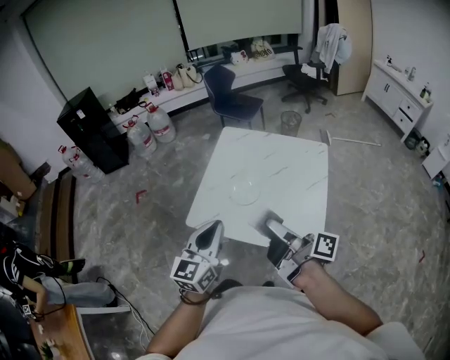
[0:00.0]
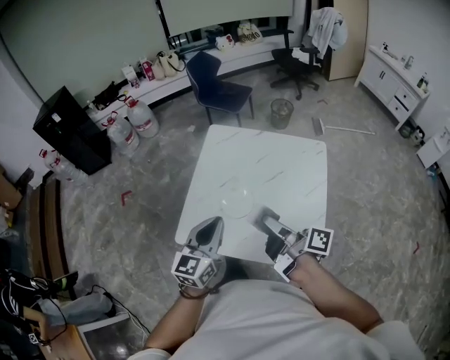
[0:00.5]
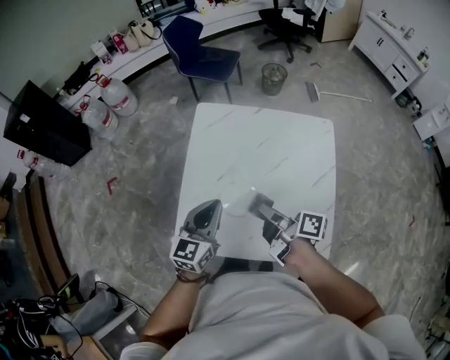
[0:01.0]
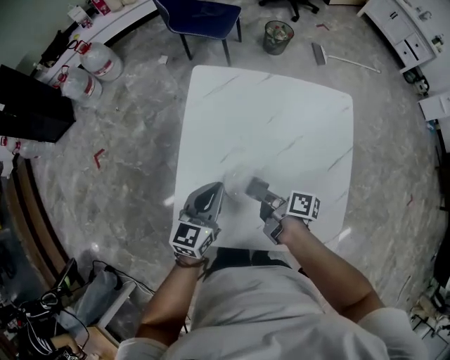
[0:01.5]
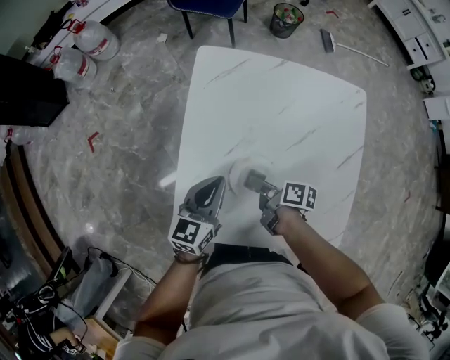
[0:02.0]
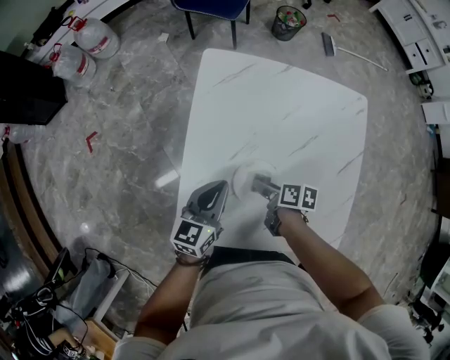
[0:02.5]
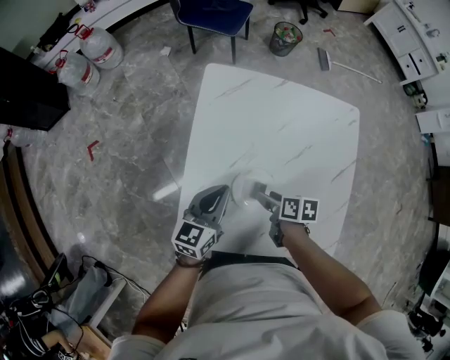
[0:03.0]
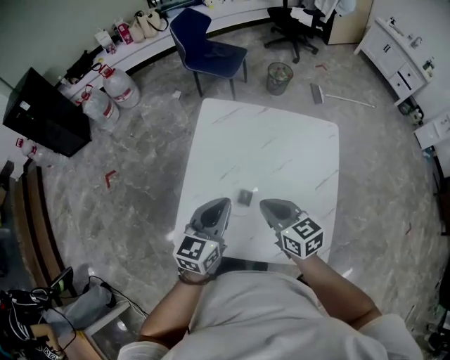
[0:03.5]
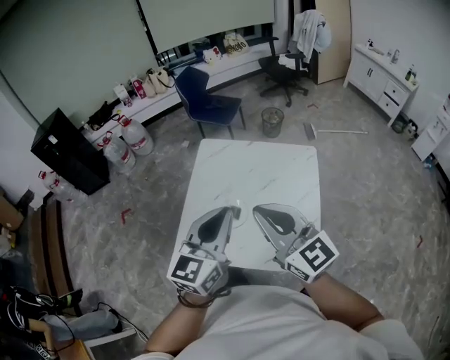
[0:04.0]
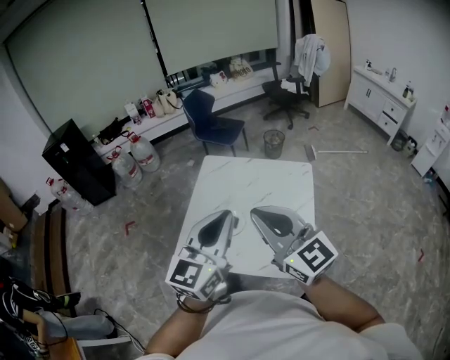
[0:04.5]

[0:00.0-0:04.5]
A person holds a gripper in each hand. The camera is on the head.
0:00.0 to 0:02.0: The left gripper changes place by roughly 50 cm, and rotates roughly 30 degrees.
0:02.0 to 0:04.5: The left gripper moves upward, some 40 cm, and changes its angle by about 30 degrees.

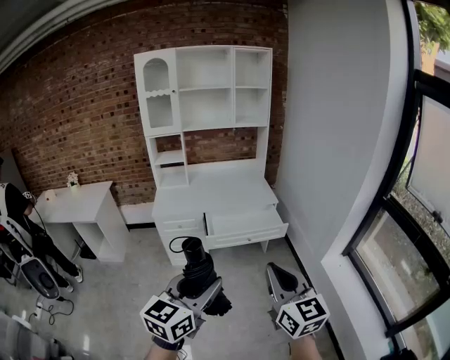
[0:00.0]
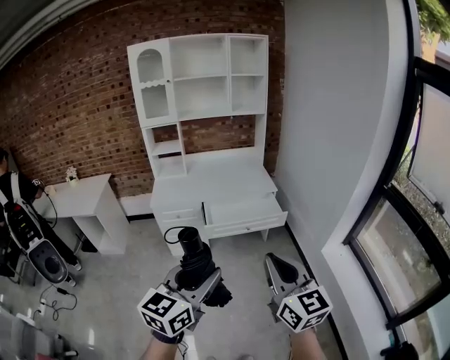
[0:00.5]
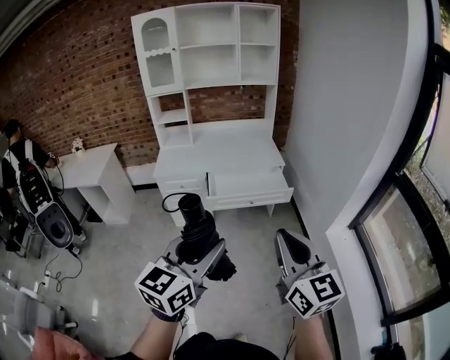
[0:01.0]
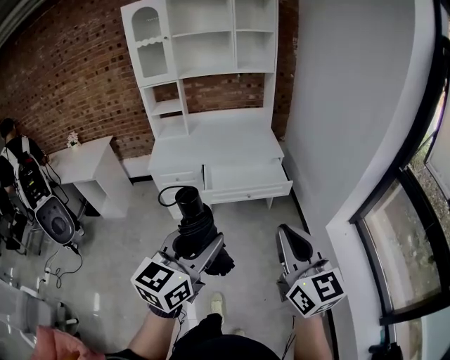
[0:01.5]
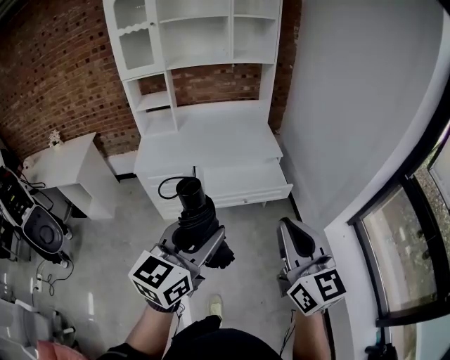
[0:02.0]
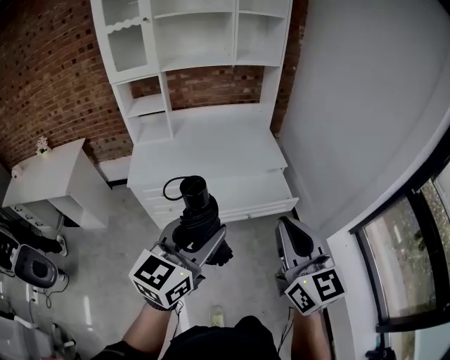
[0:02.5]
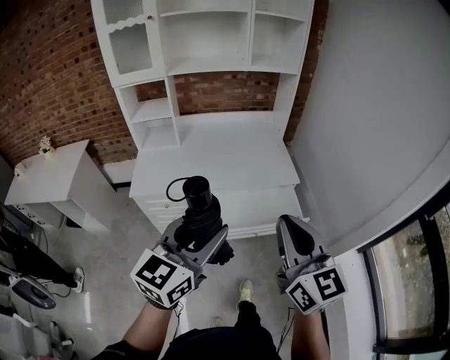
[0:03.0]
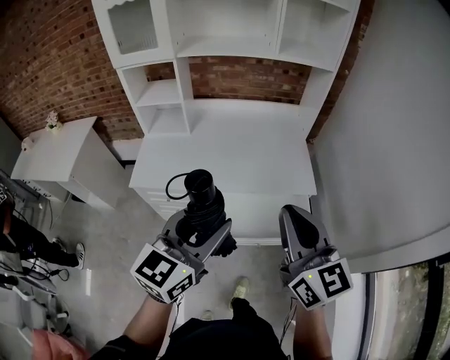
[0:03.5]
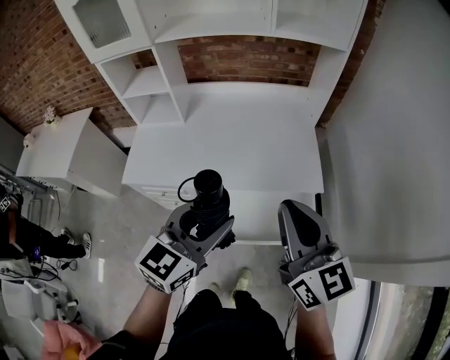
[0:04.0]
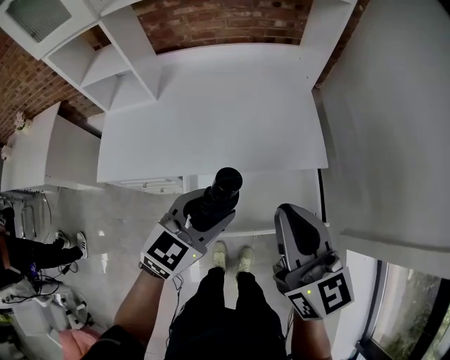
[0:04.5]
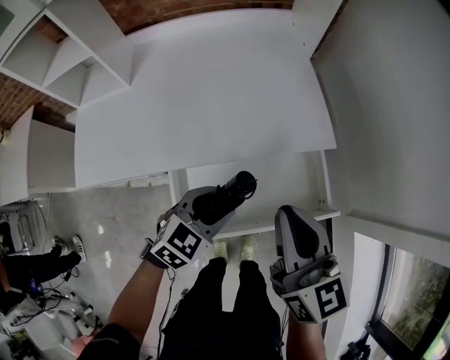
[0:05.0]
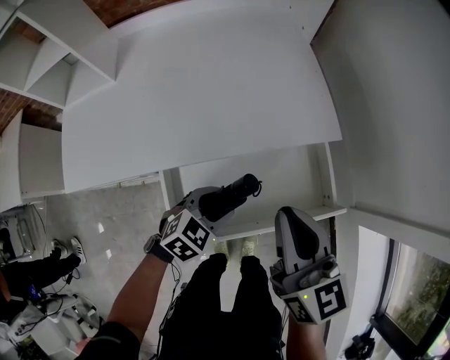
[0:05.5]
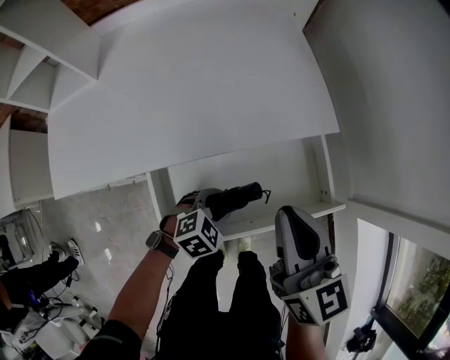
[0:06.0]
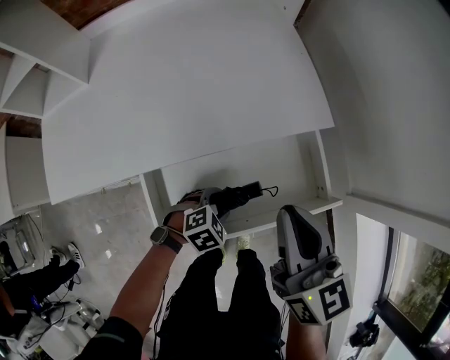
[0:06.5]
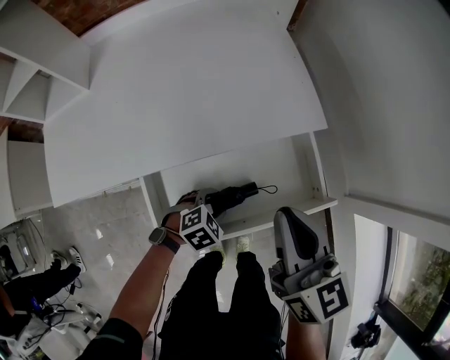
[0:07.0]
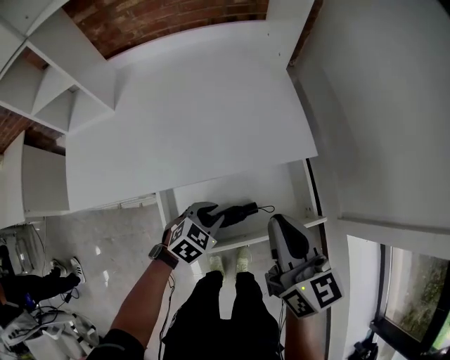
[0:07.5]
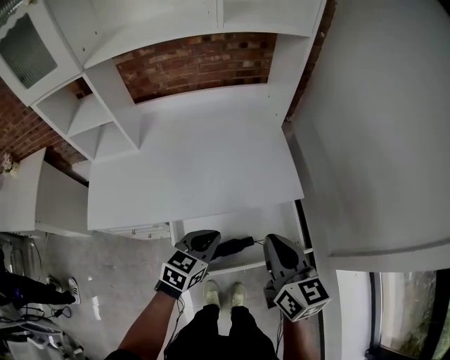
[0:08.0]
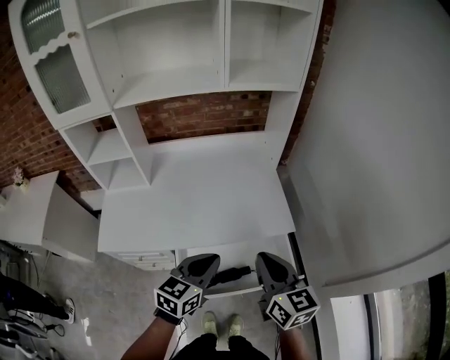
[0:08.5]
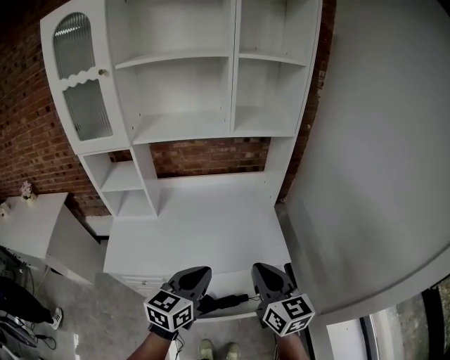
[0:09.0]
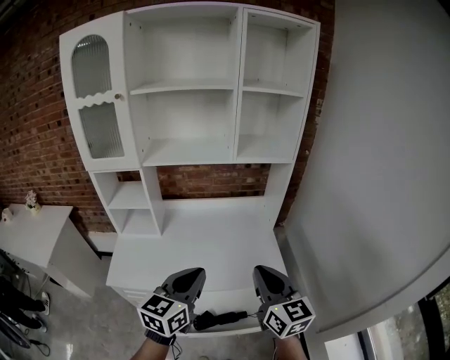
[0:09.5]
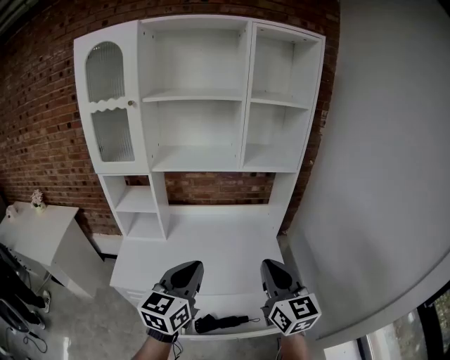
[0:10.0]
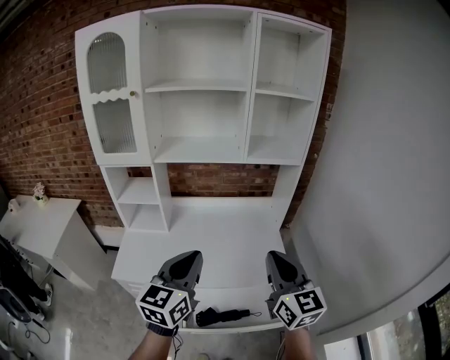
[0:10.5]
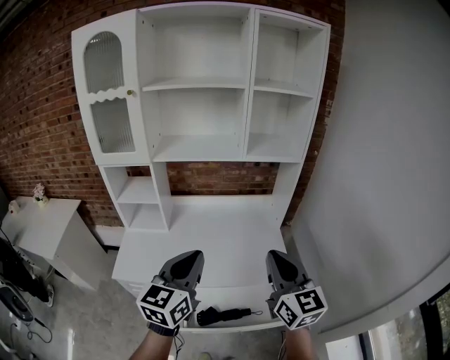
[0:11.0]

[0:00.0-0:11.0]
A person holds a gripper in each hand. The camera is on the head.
0:00.0 to 0:02.0: Both grippers move forward, about 20 cm.
0:02.0 to 0:03.5: Both grippers move forward, some 40 cm.
0:03.5 to 0:05.5: The left gripper heads downward, covering approximately 50 cm, and tips its fingers downward by about 40 degrees. Meanwhile the right gripper heads downward and forward, covering about 35 cm, and changes its angle by roughly 20 degrees.
0:05.5 to 0:07.5: The left gripper moves approximately 10 cm downward and comes back, and closes up.
0:07.5 to 0:09.0: The left gripper goes about 40 cm upward, tilts its fingers roughly 40 degrees upward, and closes its fingers. The right gripper shifts about 20 cm upward.
0:09.0 to 0:11.0: The grippers both shift upward by approximately 10 cm.

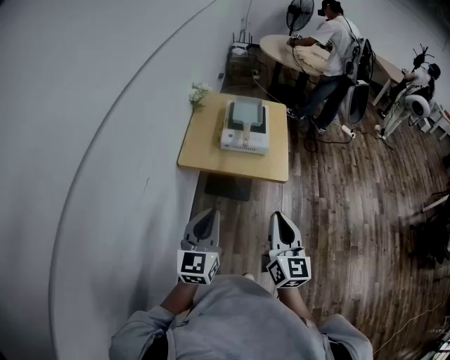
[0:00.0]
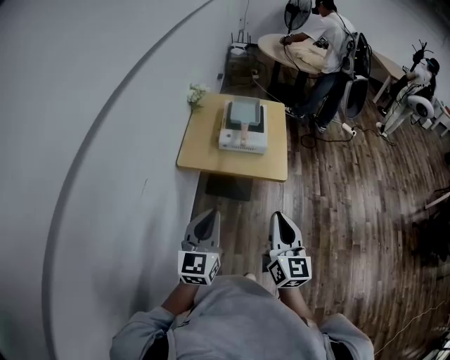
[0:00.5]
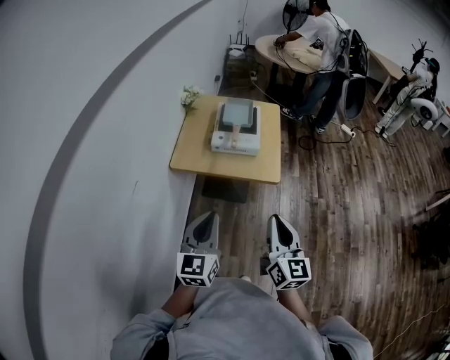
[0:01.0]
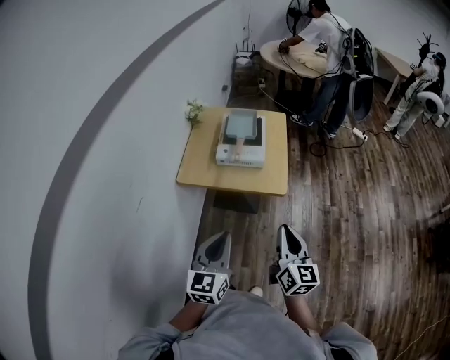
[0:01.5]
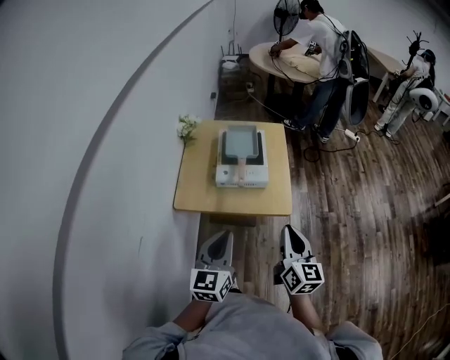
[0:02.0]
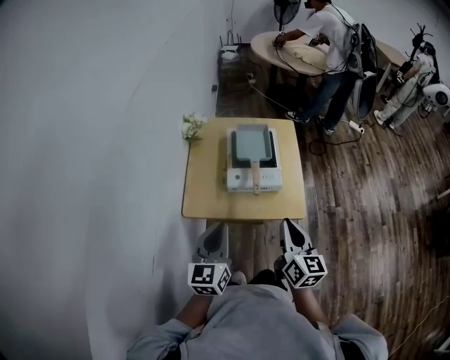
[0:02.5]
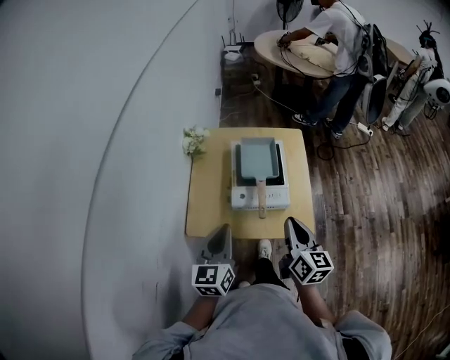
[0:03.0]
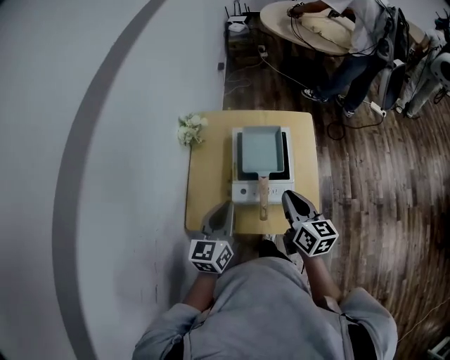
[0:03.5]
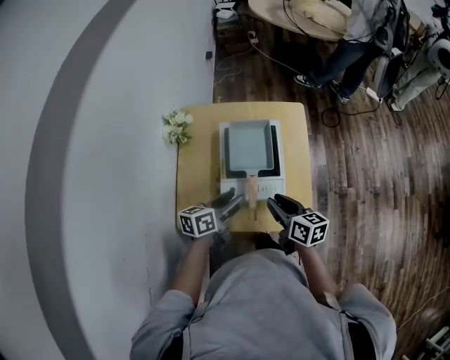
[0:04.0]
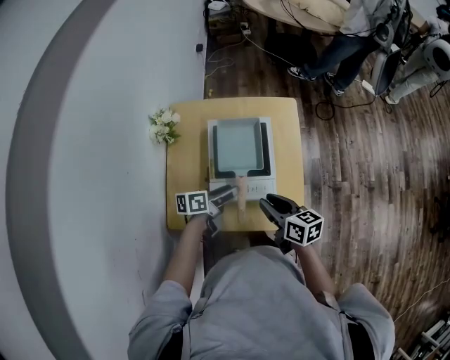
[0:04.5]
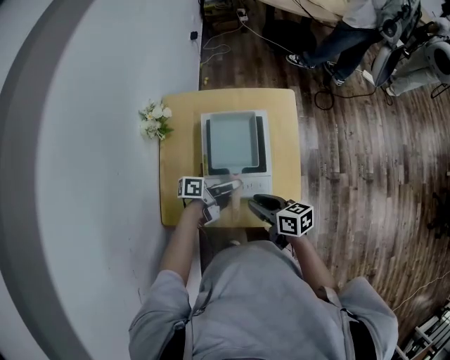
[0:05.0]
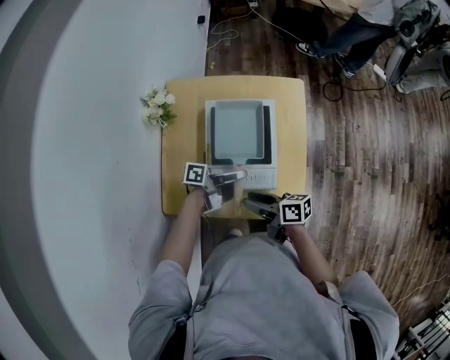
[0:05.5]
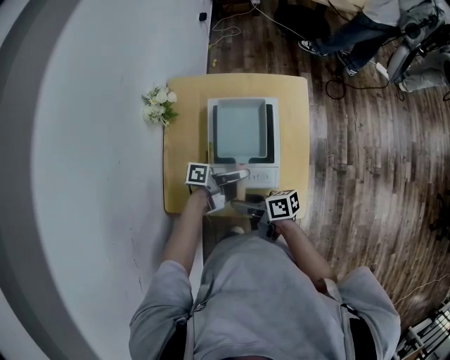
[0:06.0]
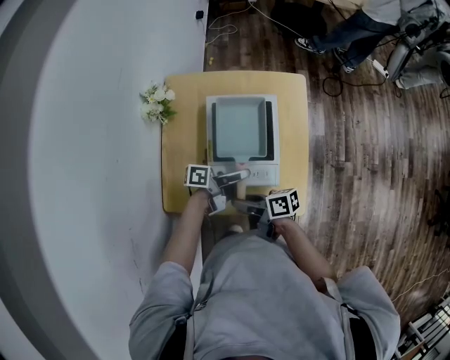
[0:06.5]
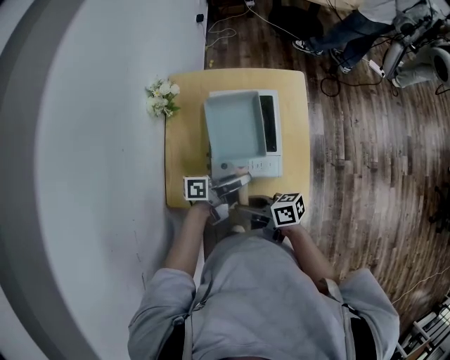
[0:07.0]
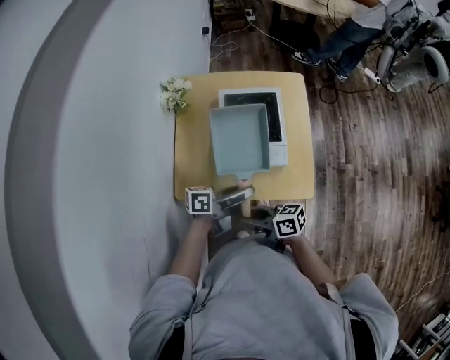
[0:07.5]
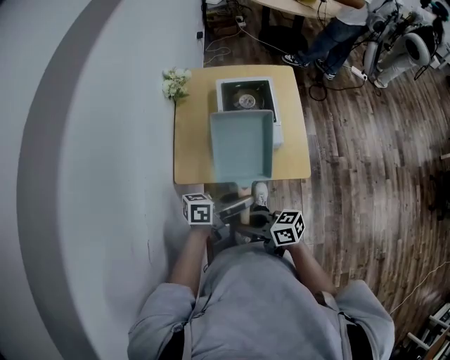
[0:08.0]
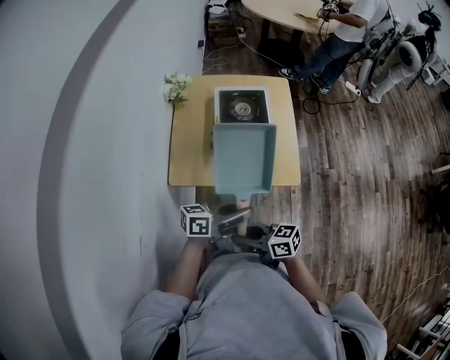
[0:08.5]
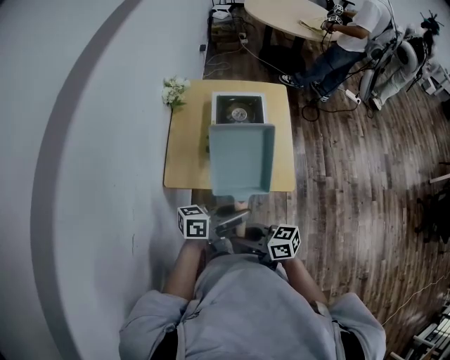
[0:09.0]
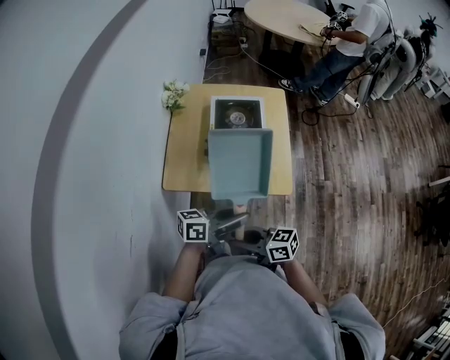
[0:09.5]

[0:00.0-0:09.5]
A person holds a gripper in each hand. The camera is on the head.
0:00.0 to 0:02.0: The grippers both shift forward by roughly 15 cm.
0:02.0 to 0:04.0: Both grippers move forward and downward, roughly 30 cm. The left gripper changes its angle by about 50 degrees, and opens up. Meanwhile the right gripper rotates some 40 degrees, and opens.
0:04.0 to 0:05.5: The right gripper goes roughly 5 cm downward, and turns by approximately 40 degrees. Meanwhile the left gripper changes place by approximately 10 cm, and swivels roughly 50 degrees.
0:05.5 to 0:07.5: The right gripper changes place by roughly 15 cm. The left gripper moves some 15 cm, and rotates roughly 30 degrees.
0:07.5 to 0:09.5: The right gripper changes place by some 15 cm. The left gripper ends up roughly 15 cm from where it was.

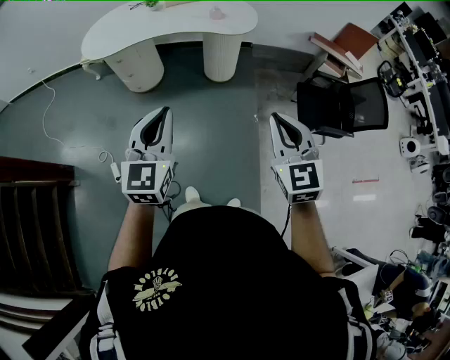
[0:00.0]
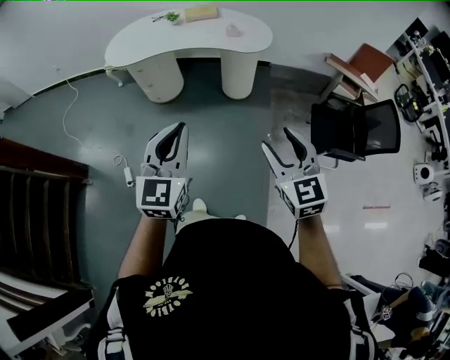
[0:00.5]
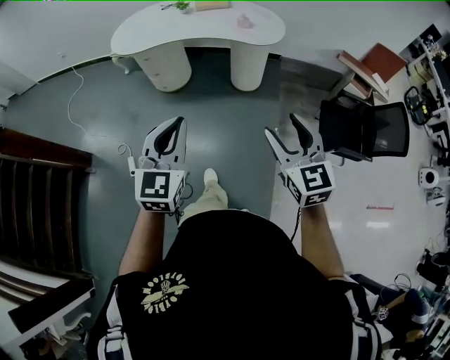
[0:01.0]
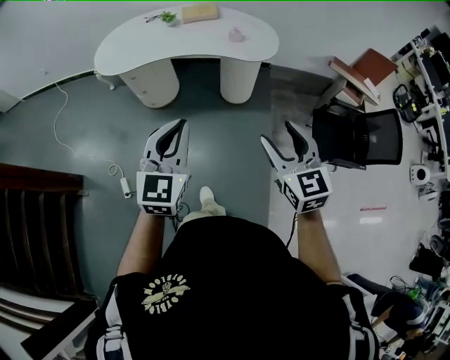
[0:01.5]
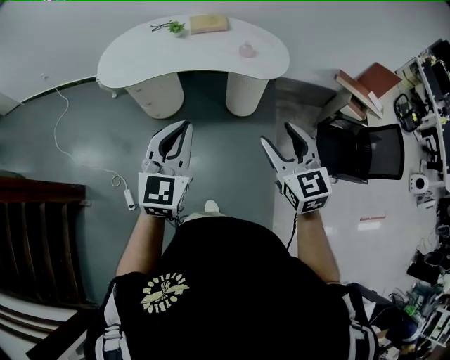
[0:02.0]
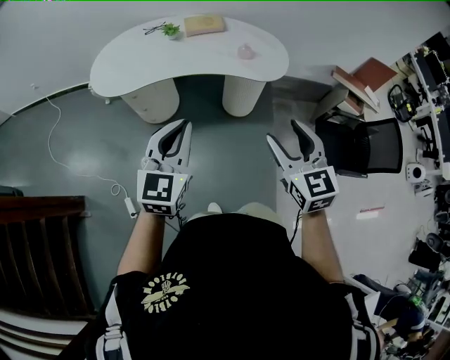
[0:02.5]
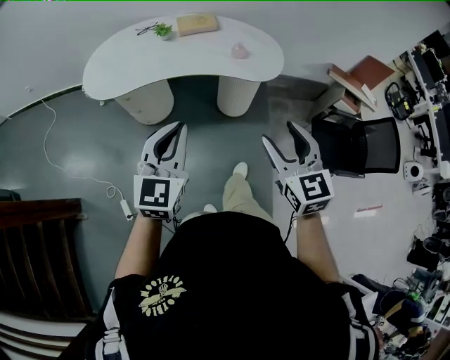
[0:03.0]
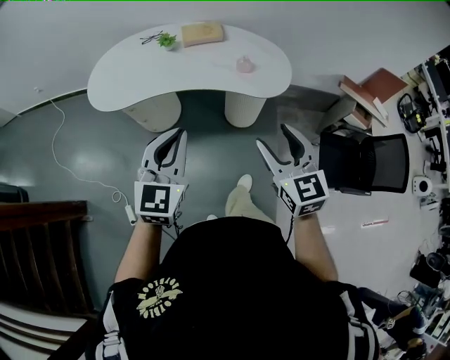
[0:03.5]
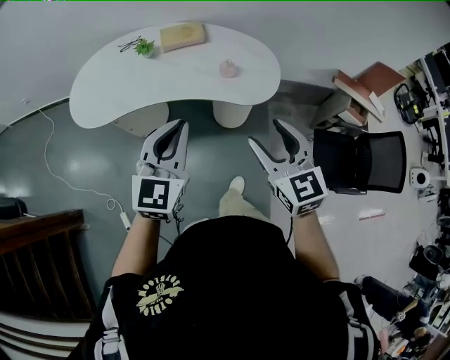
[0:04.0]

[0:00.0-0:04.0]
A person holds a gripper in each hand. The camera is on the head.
0:00.0 to 0:02.0: Both grippers move forward, roughly 20 cm. The right gripper opens its fingers.
0:02.0 to 0:04.0: Both grippers move forward, about 25 cm.
